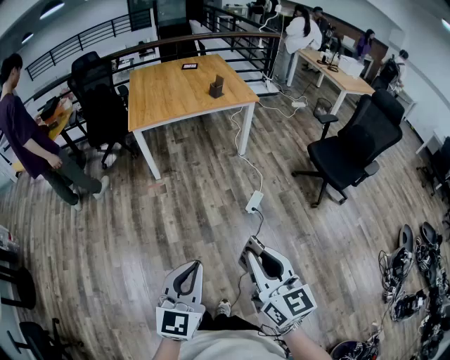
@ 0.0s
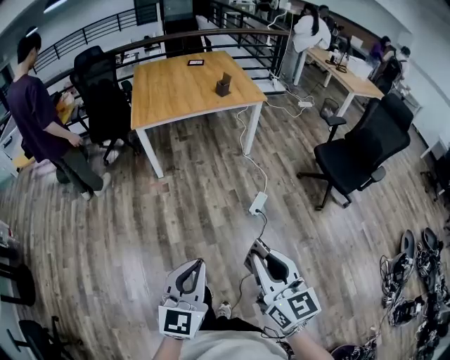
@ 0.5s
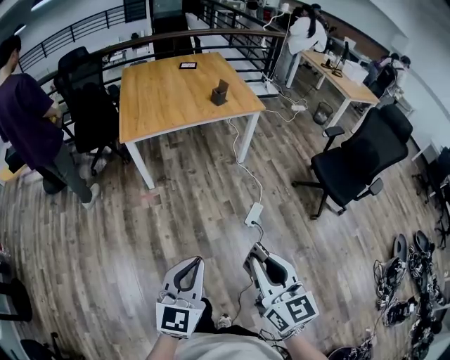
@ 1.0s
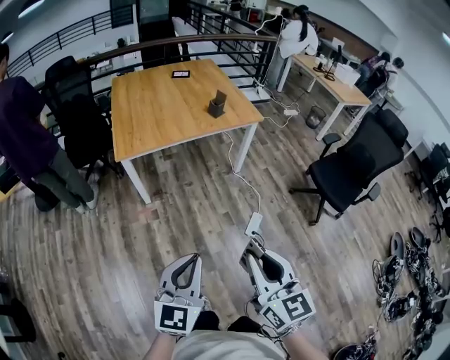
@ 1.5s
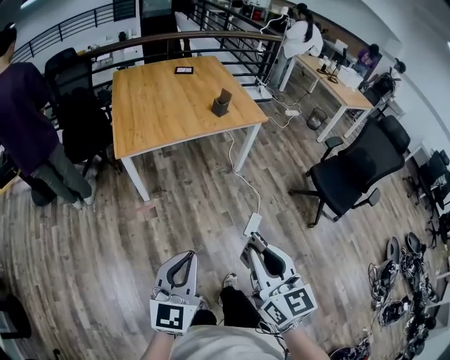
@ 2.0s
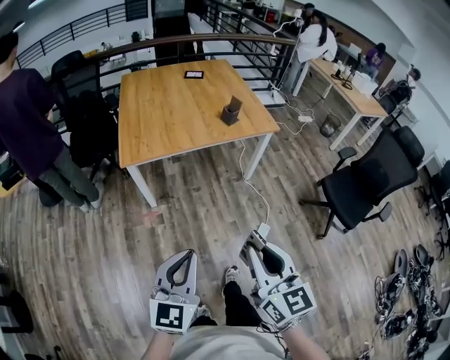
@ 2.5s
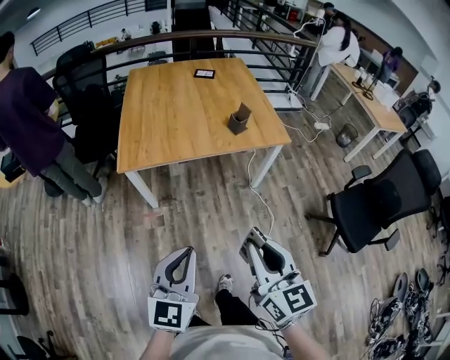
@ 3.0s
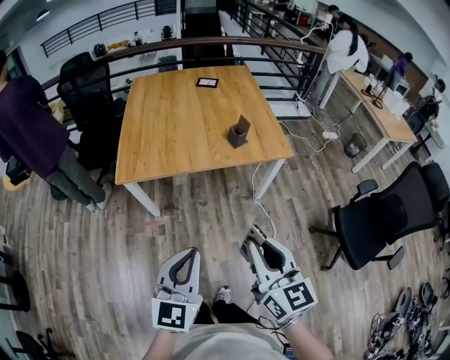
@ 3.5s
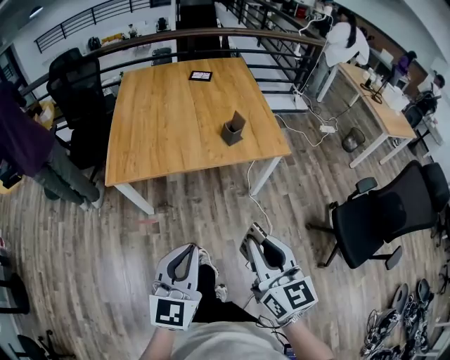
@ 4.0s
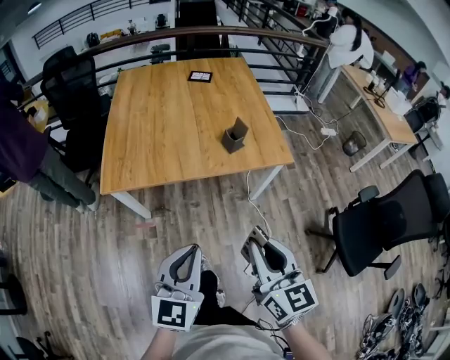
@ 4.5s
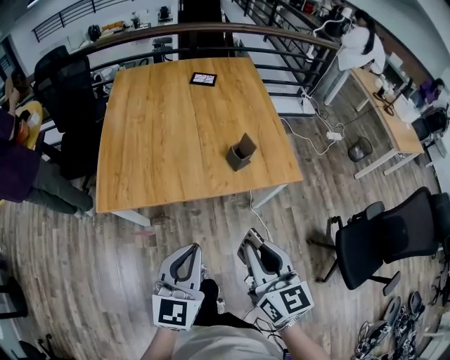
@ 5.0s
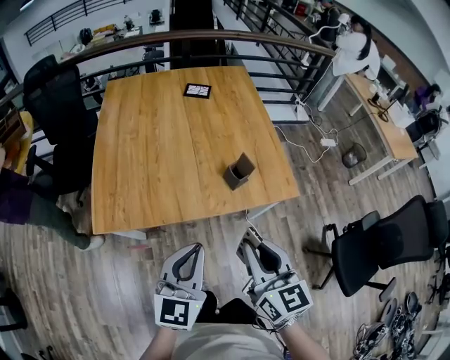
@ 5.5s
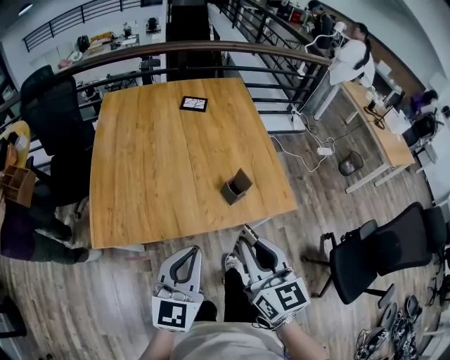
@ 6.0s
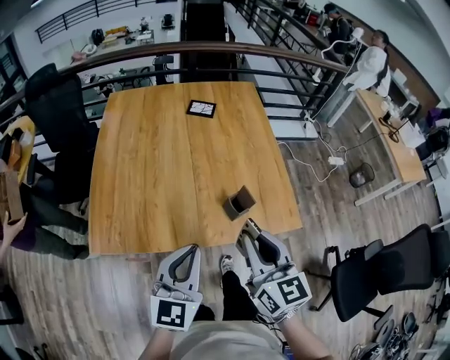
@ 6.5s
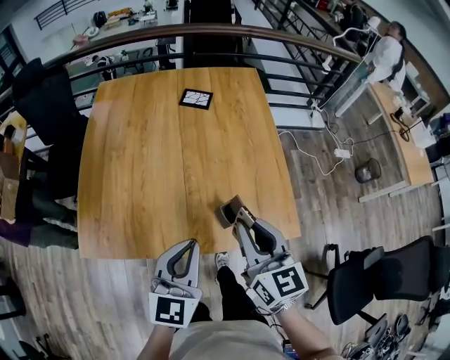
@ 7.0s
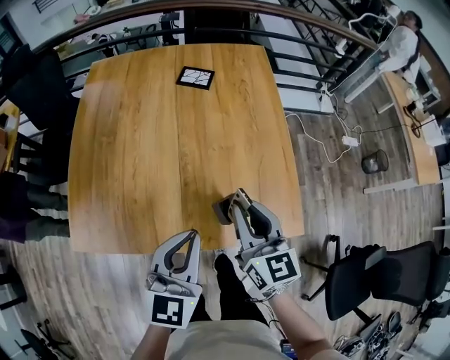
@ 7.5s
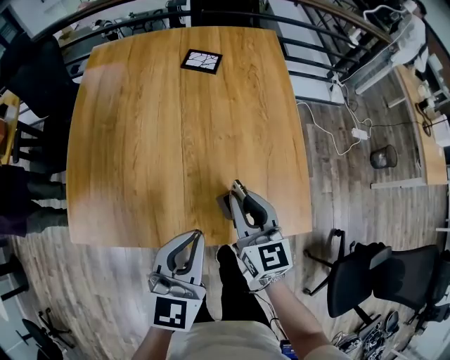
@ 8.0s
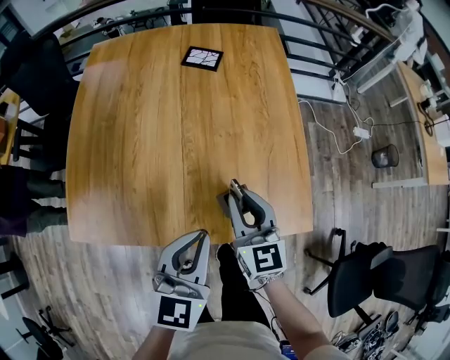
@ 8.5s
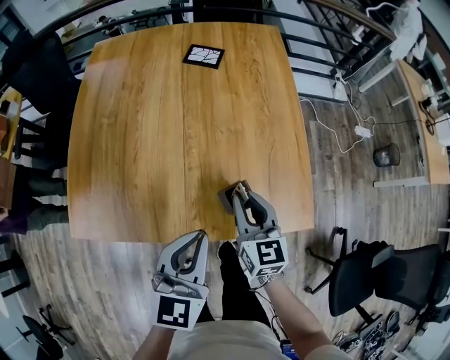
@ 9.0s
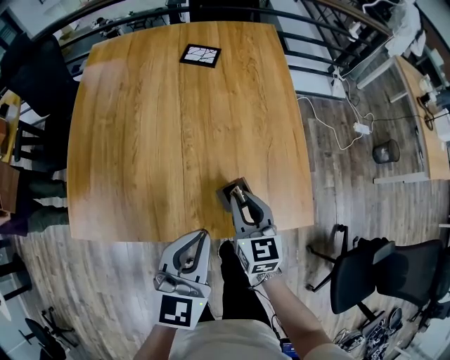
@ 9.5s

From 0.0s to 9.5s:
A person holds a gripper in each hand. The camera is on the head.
From 0.0s to 2.0s: Both grippers move forward and to the left, roughly 40 cm.
From 2.0s to 4.0s: The grippers both shift forward and to the right by roughly 40 cm.
From 4.0s to 5.5s: Both grippers move forward, about 30 cm.
From 5.5s to 7.5s: Both grippers move forward, some 30 cm.
From 7.5s to 9.5s: The left gripper changes place by about 5 cm, while the right gripper goes approximately 15 cm downward.

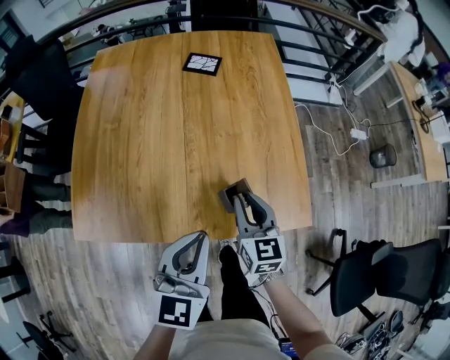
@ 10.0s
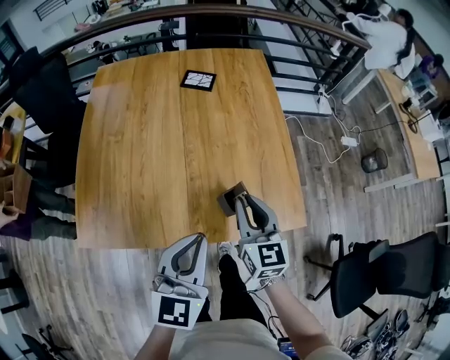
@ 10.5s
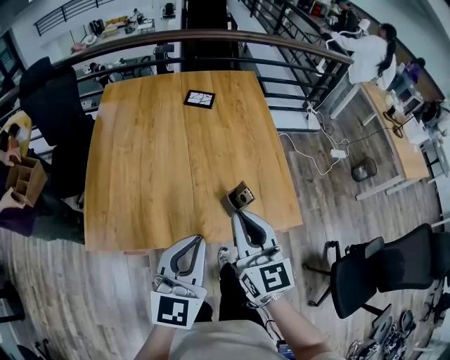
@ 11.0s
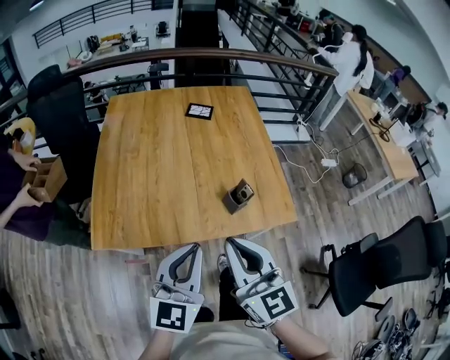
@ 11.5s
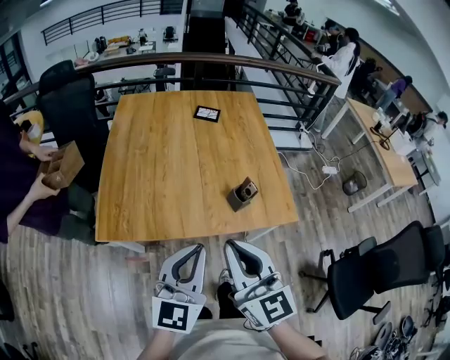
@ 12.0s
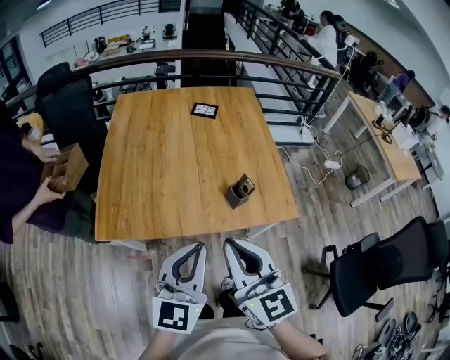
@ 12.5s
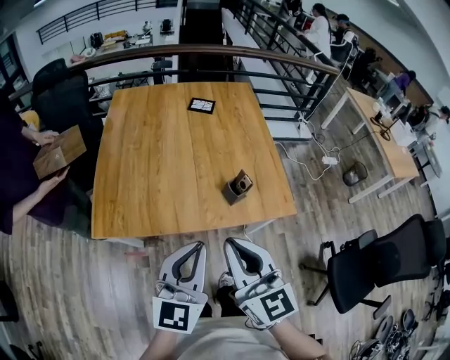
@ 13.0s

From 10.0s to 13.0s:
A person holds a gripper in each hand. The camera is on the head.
From 10.0s to 11.5s: The left gripper heads backward, upward and to the left, covering roughly 25 cm, and rotates some 20 degrees. The right gripper shifts roughly 40 cm backward, upward and to the left, and turns by some 20 degrees.
From 11.5s to 13.0s: The grippers stay close to where they were, moving slightly.

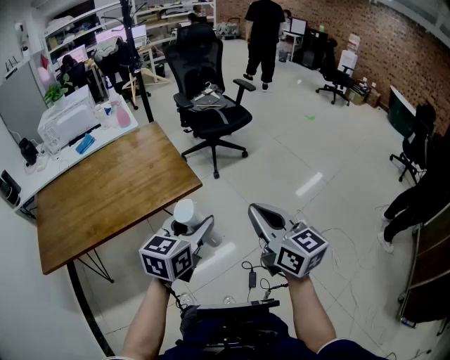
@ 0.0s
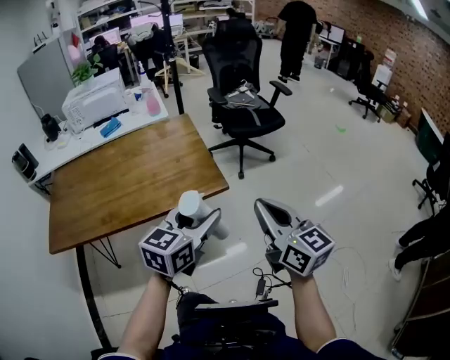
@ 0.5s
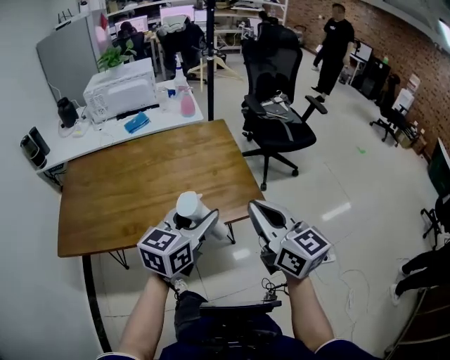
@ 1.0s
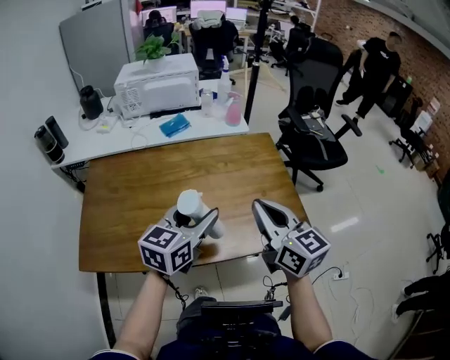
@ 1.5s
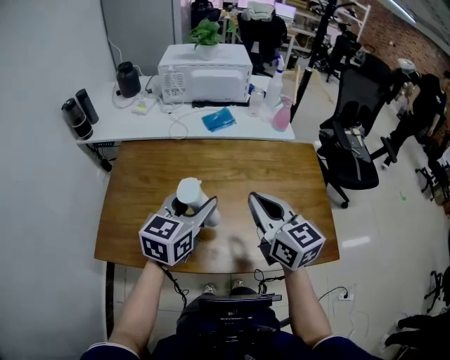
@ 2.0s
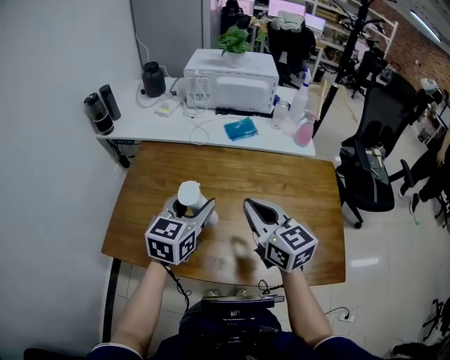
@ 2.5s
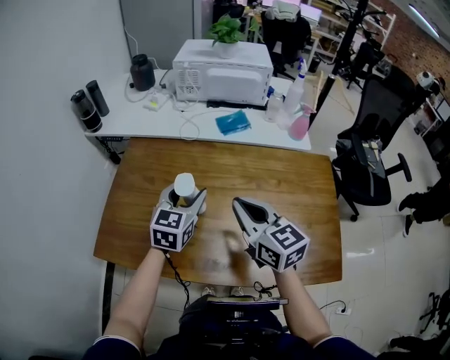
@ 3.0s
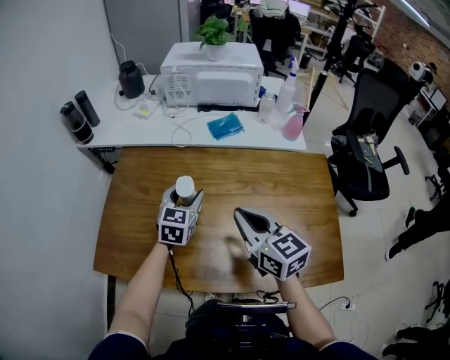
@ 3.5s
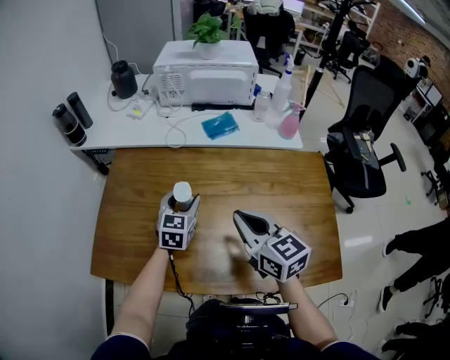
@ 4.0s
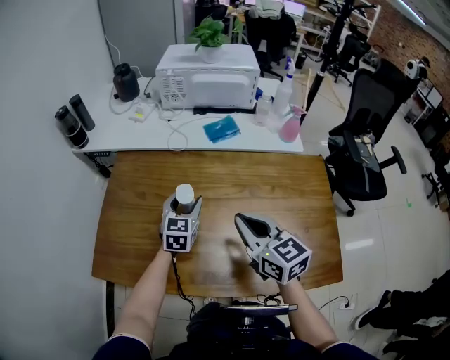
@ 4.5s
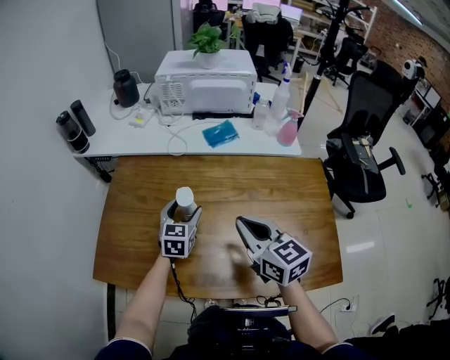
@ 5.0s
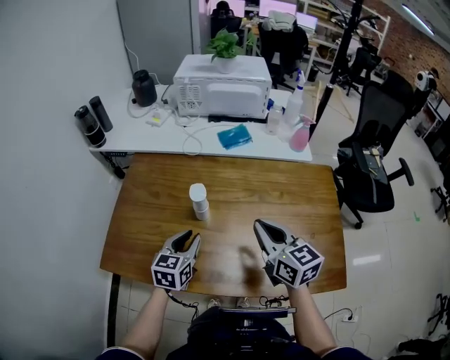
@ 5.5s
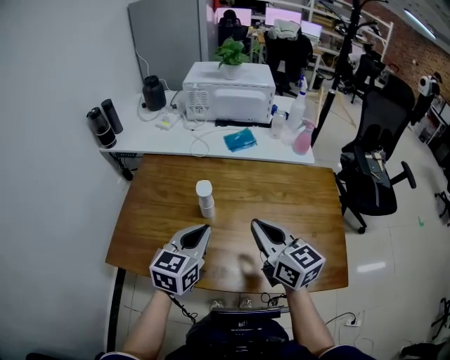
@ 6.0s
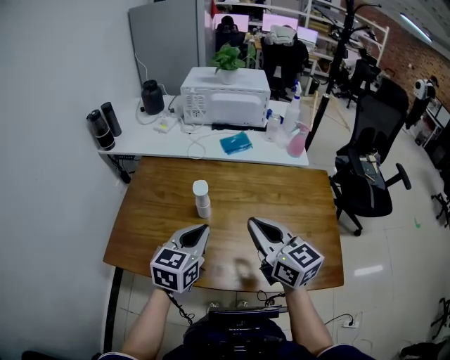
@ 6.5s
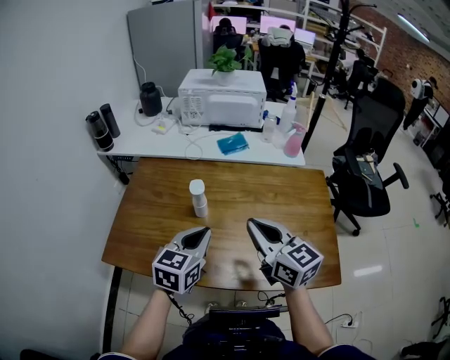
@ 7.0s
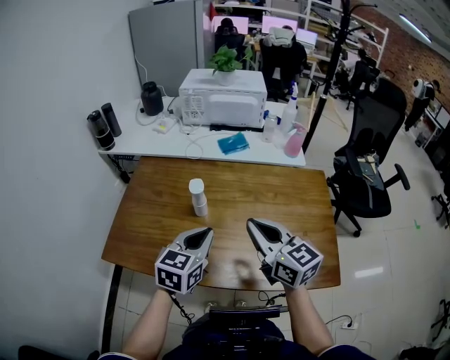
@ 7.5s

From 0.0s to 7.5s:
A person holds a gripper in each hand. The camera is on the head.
From 0.0s to 2.0s: Both grippers are carried some 60 cm. The left gripper changes its angle by roughly 30 degrees. The right gripper turns by about 30 degrees.
From 2.0s to 4.0s: The right gripper travels downward and forward by about 10 cm. The left gripper travels downward and forward by roughly 20 cm, and rotates roughly 20 degrees.
From 4.0s to 5.5s: The left gripper is displaced backward by roughly 15 cm.
From 5.5s to 7.5s: The right gripper goes approximately 10 cm upward and backward, while the left gripper travels upward, to the right and backward by roughly 15 cm, and closes up.

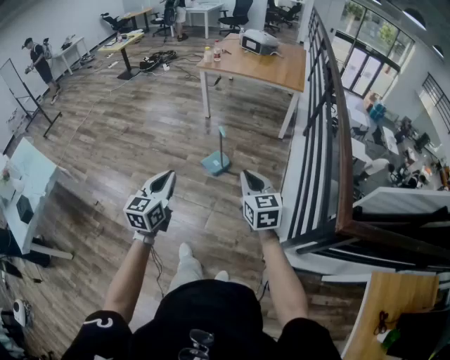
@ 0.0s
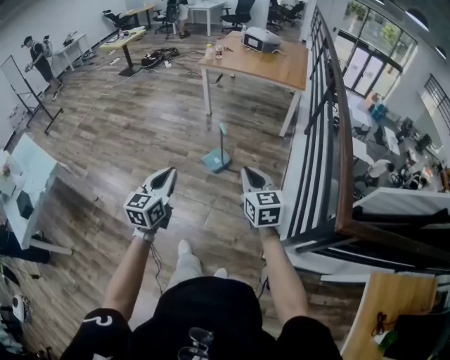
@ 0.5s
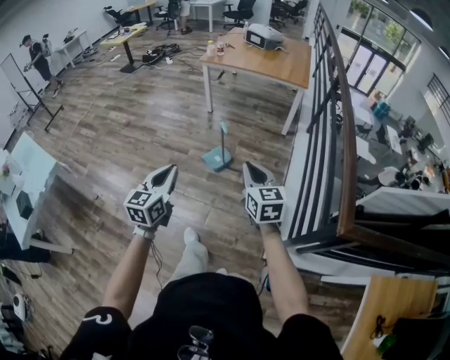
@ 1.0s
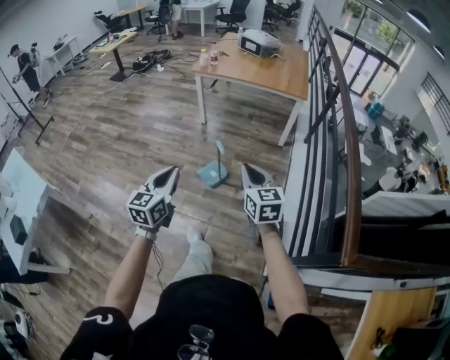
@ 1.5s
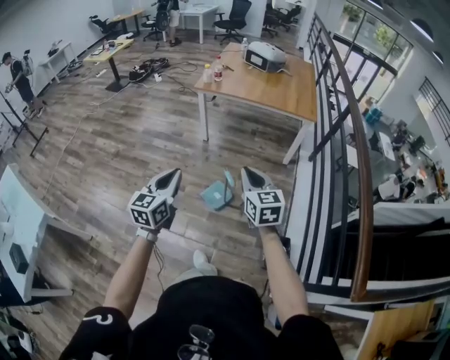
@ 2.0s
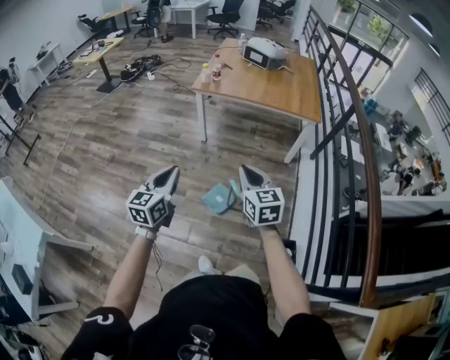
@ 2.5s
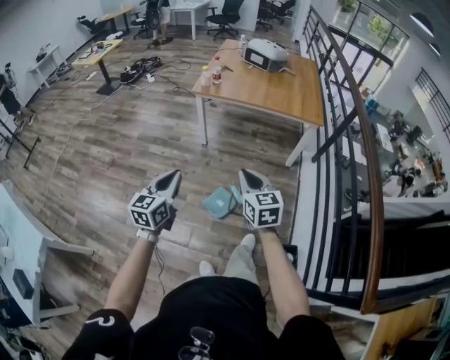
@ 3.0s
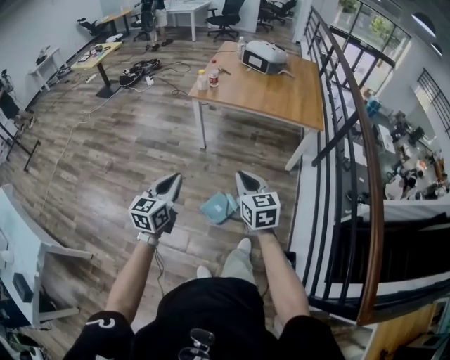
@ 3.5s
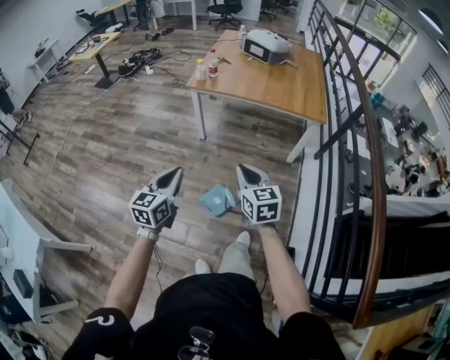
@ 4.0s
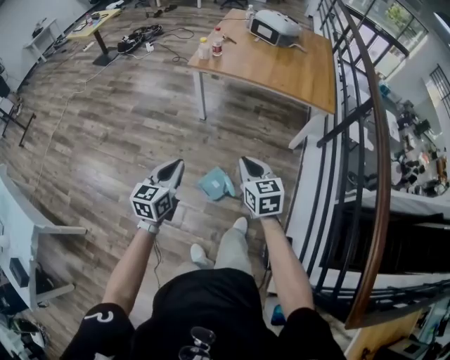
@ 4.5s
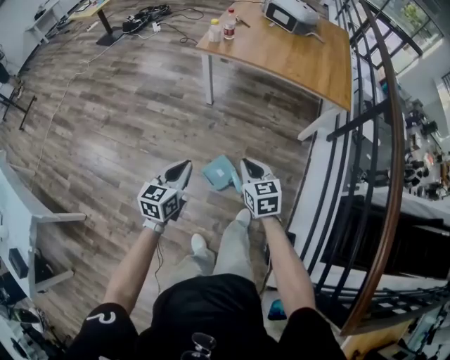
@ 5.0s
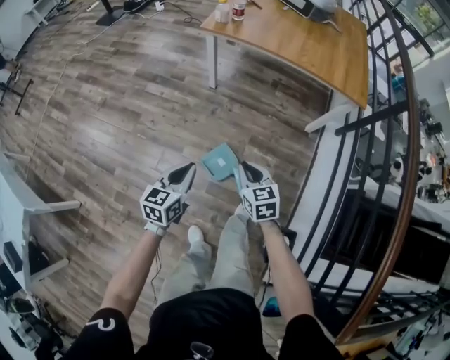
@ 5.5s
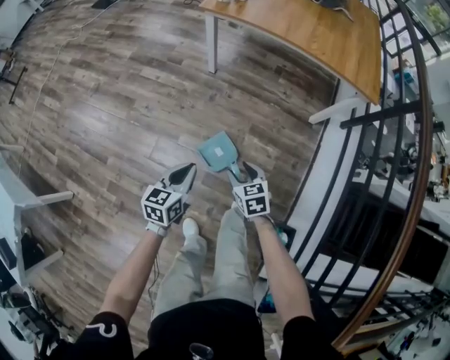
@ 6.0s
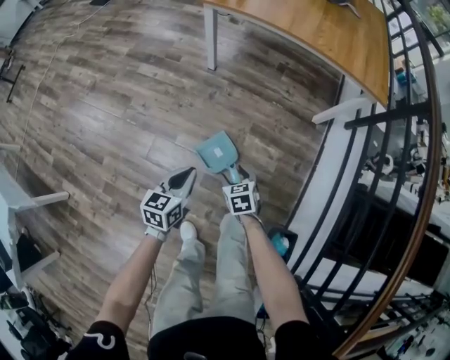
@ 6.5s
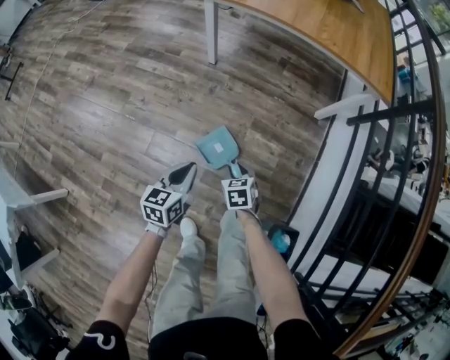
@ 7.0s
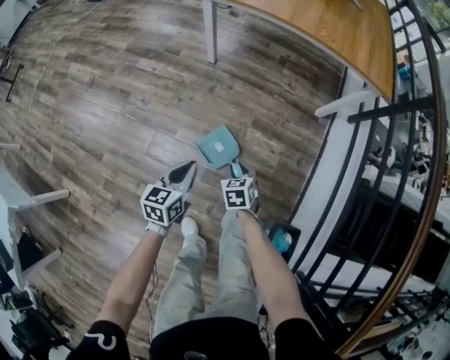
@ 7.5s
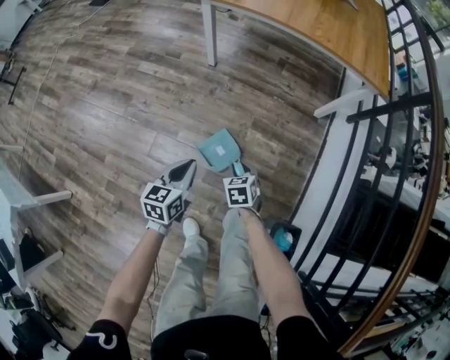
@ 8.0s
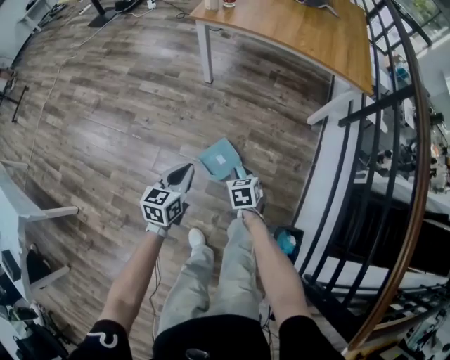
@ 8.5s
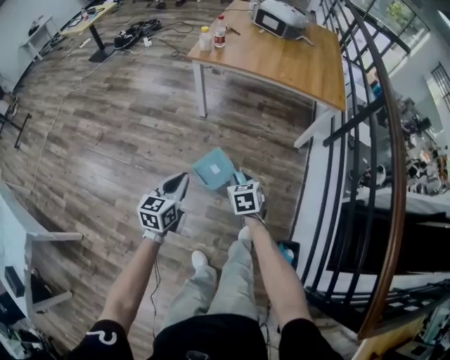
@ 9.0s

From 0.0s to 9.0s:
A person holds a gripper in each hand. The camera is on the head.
From 0.0s to 2.0s: Both grippers move forward, about 40 cm.
From 2.0s to 4.5s: The two grippers go roughly 25 cm forward and downward.
From 4.5s to 7.0s: The grippers both shift downward by some 40 cm. The right gripper tips its fingers downward by roughly 30 degrees, and opens its fingers.
From 7.0s to 9.0s: Both grippers travel together upward, roughly 20 cm.
